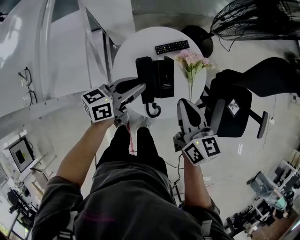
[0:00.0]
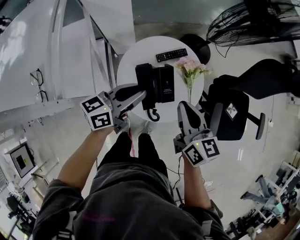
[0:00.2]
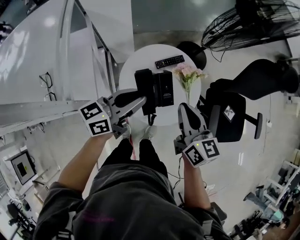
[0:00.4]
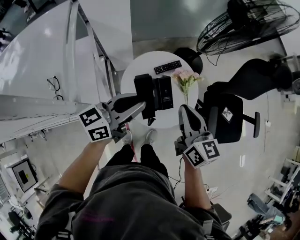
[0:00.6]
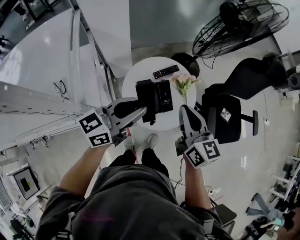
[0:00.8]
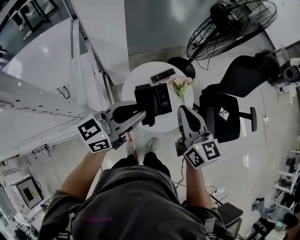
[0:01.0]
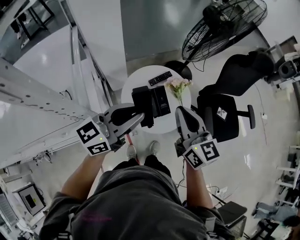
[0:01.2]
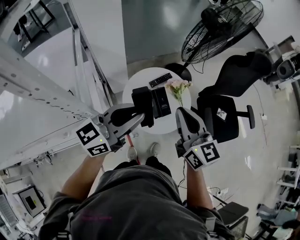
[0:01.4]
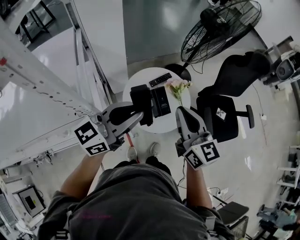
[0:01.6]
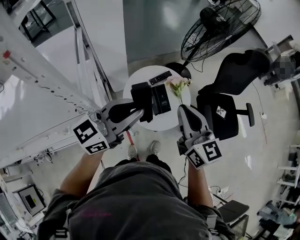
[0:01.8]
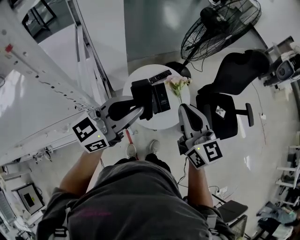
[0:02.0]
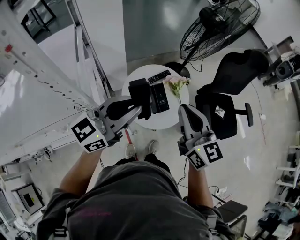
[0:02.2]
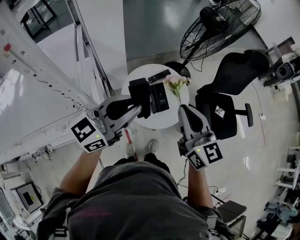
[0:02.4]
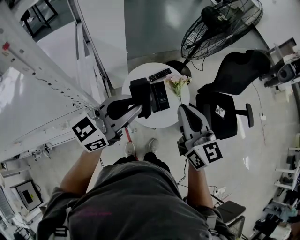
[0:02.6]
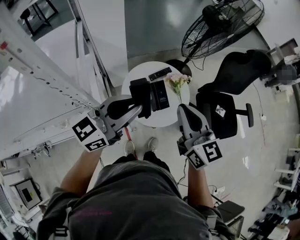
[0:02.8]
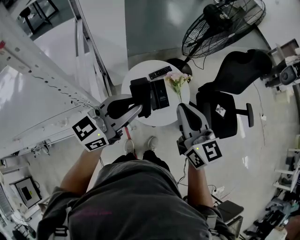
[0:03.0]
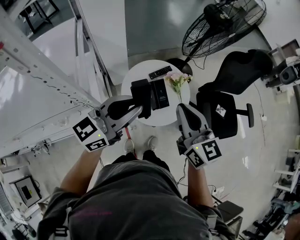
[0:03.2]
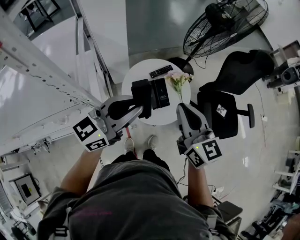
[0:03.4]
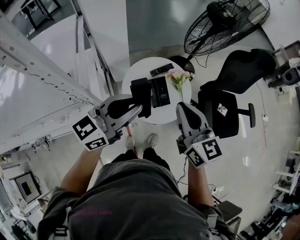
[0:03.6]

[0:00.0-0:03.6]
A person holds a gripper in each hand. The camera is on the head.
0:00.0 to 0:01.8: Both grippers travel together upward and backward, some 30 cm. The right gripper swivels some 30 degrees; the left gripper rotates approximately 40 degrees.
0:01.8 to 0:03.6: The grippers make only small movements.

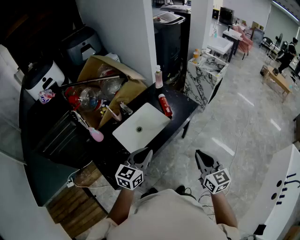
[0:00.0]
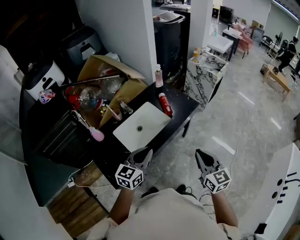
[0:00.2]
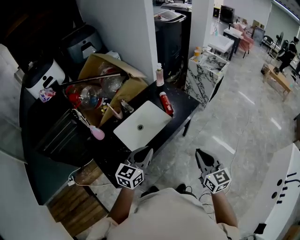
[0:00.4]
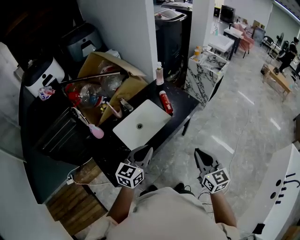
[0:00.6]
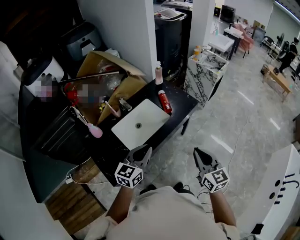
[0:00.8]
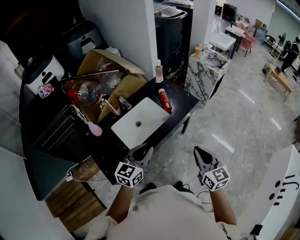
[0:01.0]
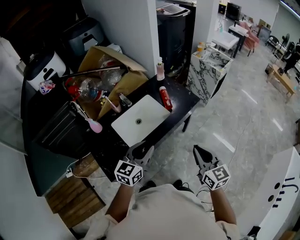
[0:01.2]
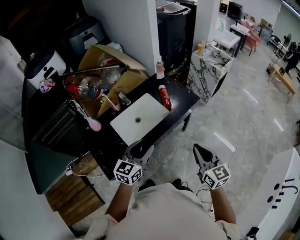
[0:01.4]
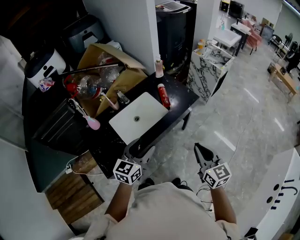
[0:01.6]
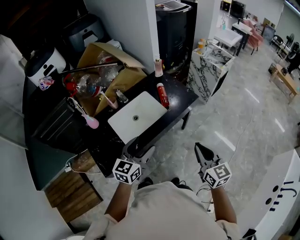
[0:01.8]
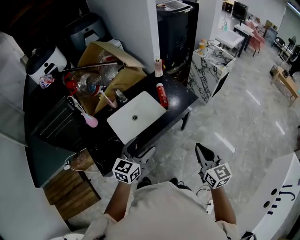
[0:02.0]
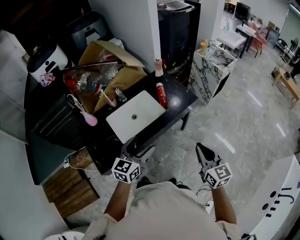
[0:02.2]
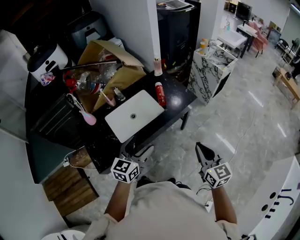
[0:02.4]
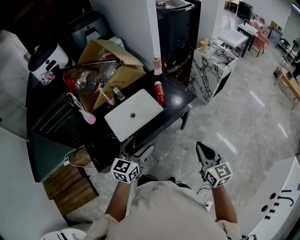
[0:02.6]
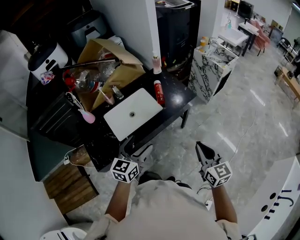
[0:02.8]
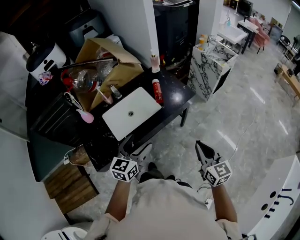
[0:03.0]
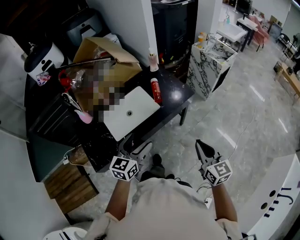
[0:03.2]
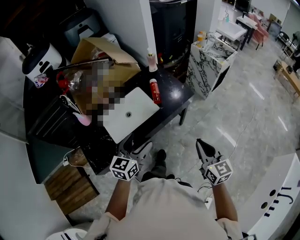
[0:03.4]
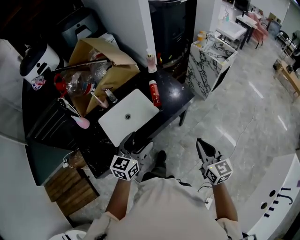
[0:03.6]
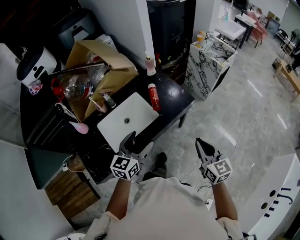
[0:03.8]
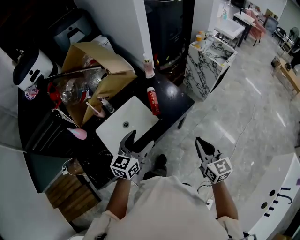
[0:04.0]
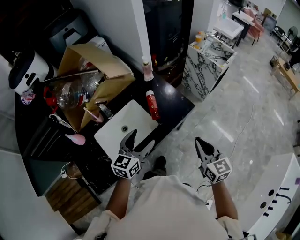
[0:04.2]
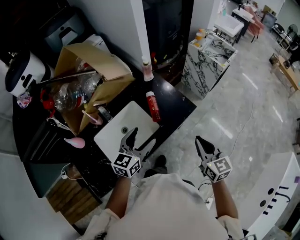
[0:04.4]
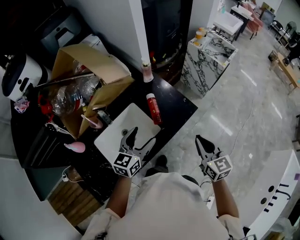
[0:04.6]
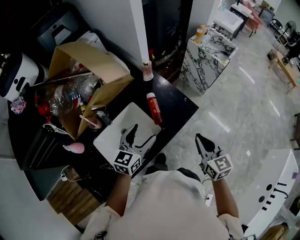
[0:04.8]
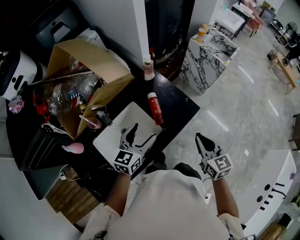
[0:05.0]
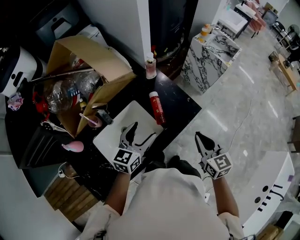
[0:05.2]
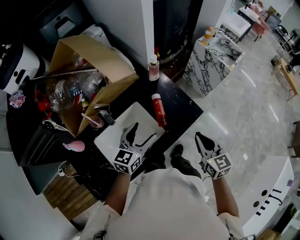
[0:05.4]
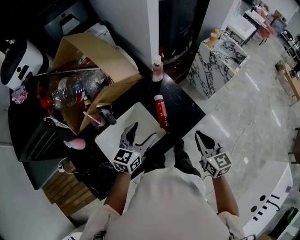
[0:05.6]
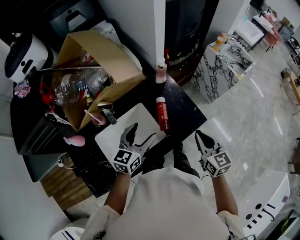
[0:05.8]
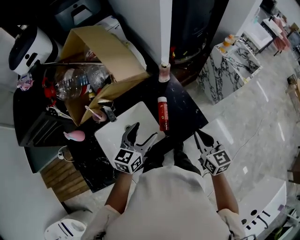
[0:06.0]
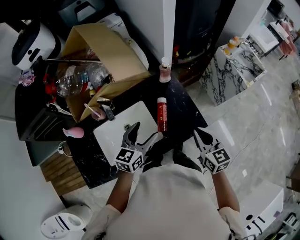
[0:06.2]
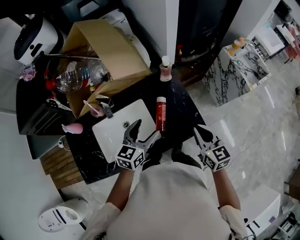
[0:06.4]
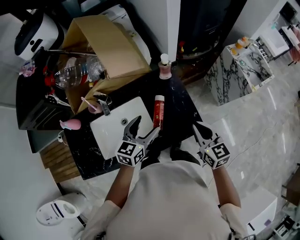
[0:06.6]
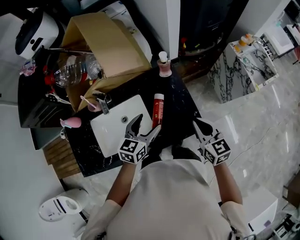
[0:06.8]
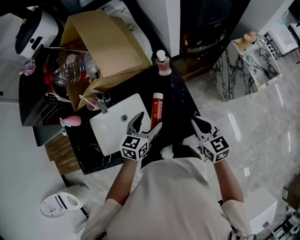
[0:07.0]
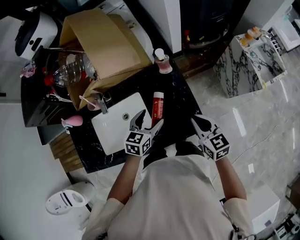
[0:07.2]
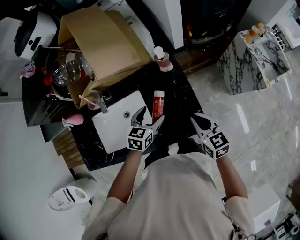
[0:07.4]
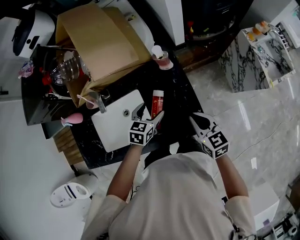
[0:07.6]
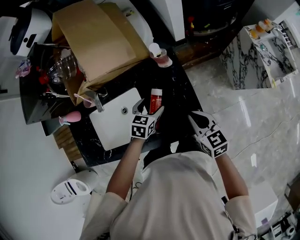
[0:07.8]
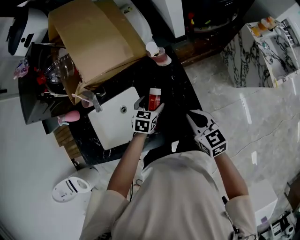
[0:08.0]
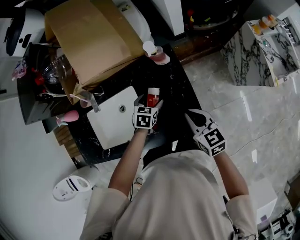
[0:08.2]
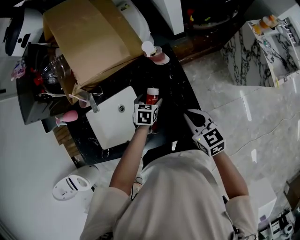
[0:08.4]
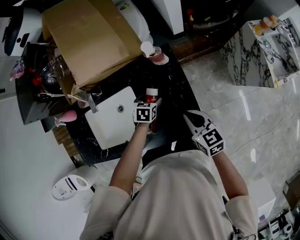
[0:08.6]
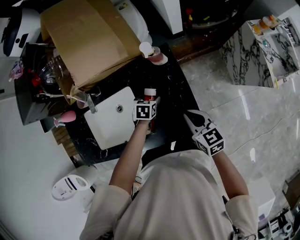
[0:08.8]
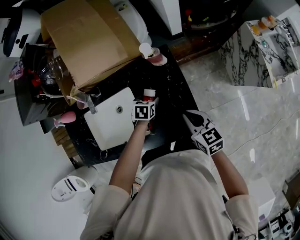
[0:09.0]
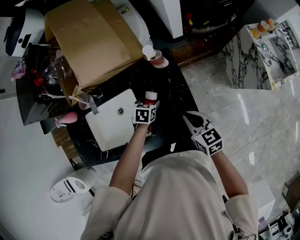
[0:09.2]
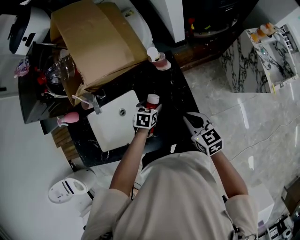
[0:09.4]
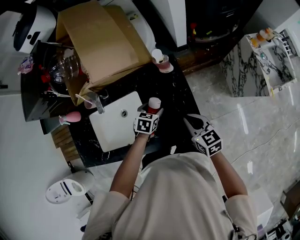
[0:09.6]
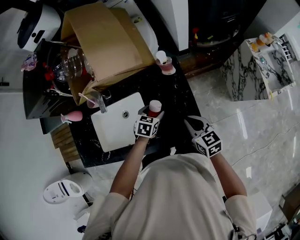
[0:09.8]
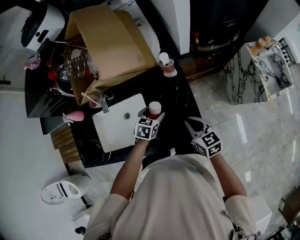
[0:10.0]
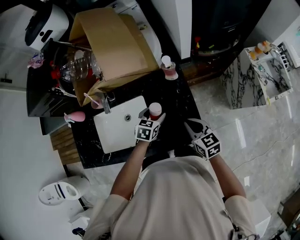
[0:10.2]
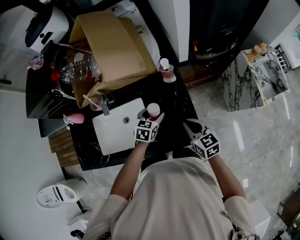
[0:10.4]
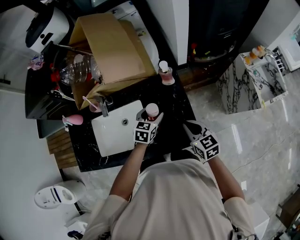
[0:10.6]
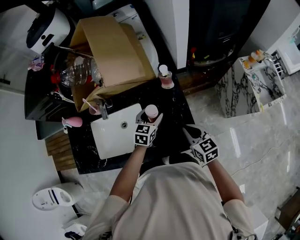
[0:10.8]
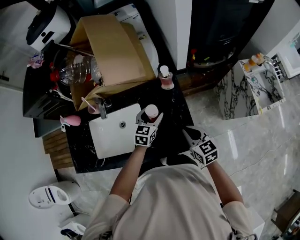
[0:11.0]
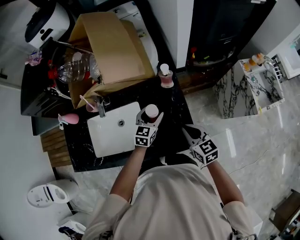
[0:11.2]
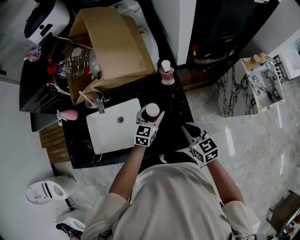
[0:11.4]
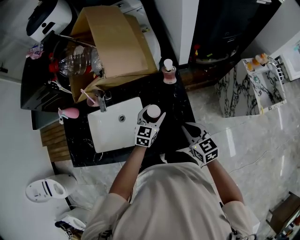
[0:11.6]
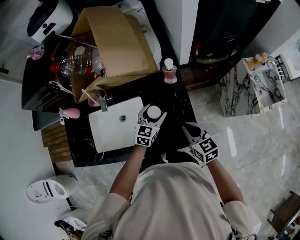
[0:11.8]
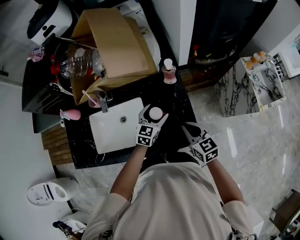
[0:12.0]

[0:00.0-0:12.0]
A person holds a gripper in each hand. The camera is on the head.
0:00.0 to 0:01.6: The left gripper opens up.
0:01.6 to 0:03.0: Both grippers travel together to the right, about 10 cm.
0:03.0 to 0:04.4: The two grippers go some 25 cm forward.
0:04.4 to 0:06.0: The grippers both shift forward by about 15 cm.
0:06.0 to 0:07.6: The left gripper travels downward, forward and to the right by approximately 25 cm, and rotates approximately 30 degrees. The right gripper goes some 20 cm forward, downward and to the right, and swivels about 20 degrees.
0:07.6 to 0:09.0: The right gripper goes about 5 cm downward, while the left gripper travels downward by about 15 cm, and swivels about 20 degrees.
0:09.0 to 0:10.4: The right gripper moves upward, approximately 5 cm. Meanwhile the left gripper travels upward by approximately 15 cm, and changes its angle by approximately 20 degrees.

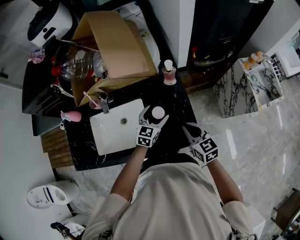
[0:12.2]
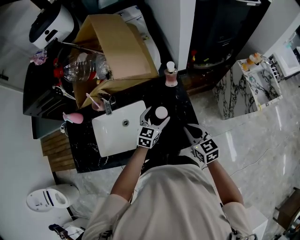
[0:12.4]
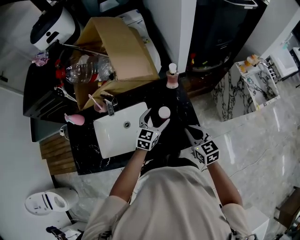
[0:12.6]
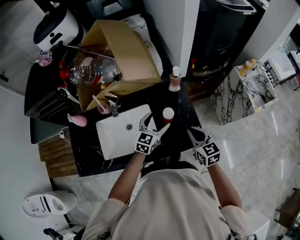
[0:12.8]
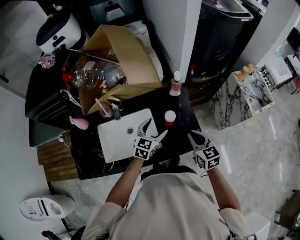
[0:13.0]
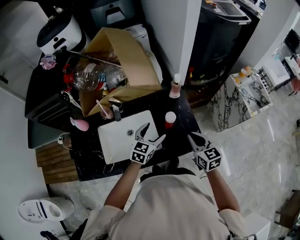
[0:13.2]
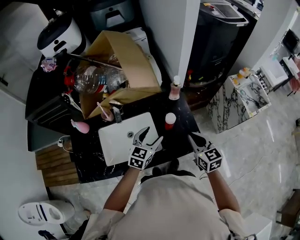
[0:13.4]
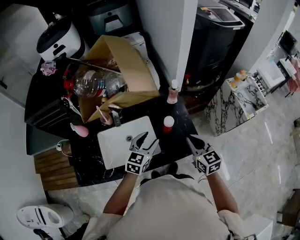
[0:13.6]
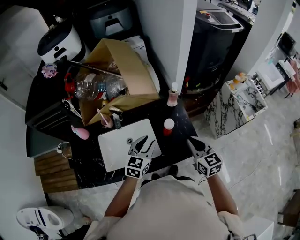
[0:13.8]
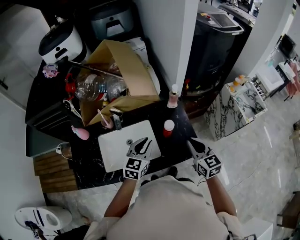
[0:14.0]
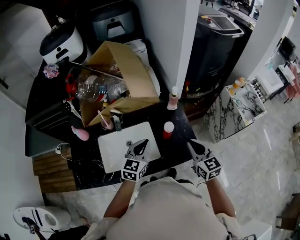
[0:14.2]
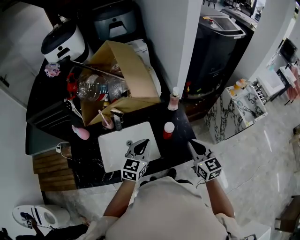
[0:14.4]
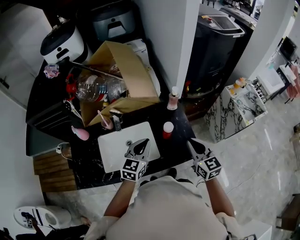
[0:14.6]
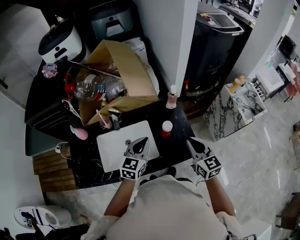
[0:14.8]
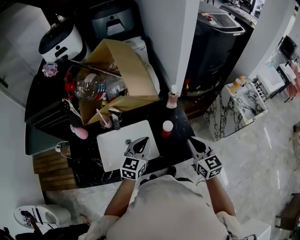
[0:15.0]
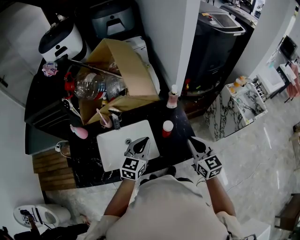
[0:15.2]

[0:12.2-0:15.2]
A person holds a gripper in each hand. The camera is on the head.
0:12.2 to 0:13.8: The left gripper is displaced upward, backward and to the left by approximately 20 cm, and closes. The right gripper is displaced upward and backward by some 15 cm.
0:13.8 to 0:15.2: The left gripper closes its fingers.

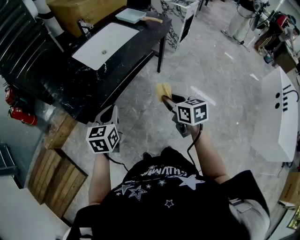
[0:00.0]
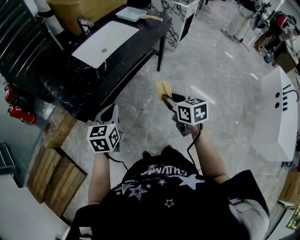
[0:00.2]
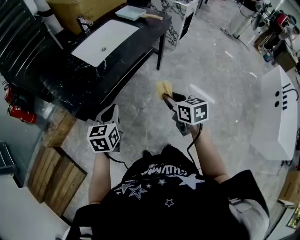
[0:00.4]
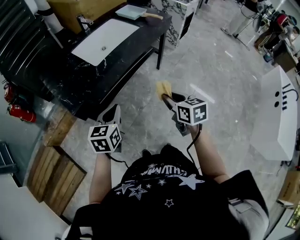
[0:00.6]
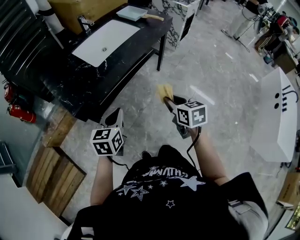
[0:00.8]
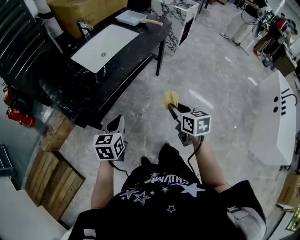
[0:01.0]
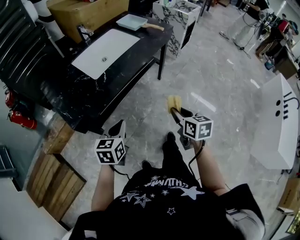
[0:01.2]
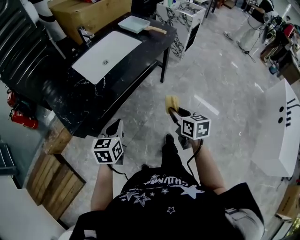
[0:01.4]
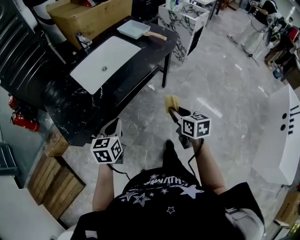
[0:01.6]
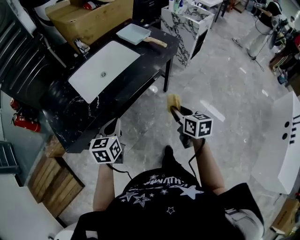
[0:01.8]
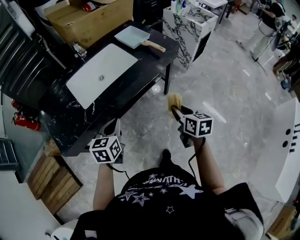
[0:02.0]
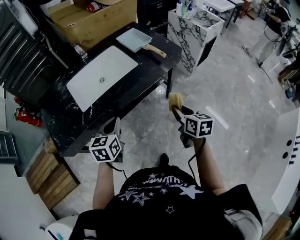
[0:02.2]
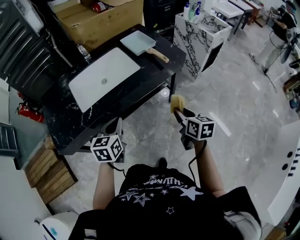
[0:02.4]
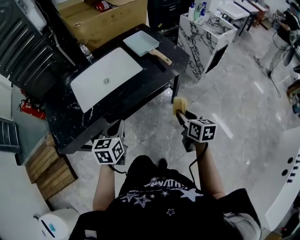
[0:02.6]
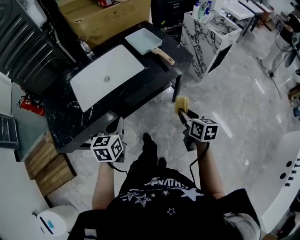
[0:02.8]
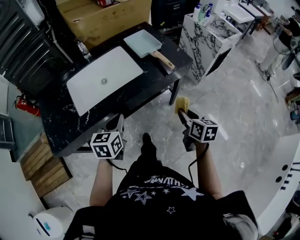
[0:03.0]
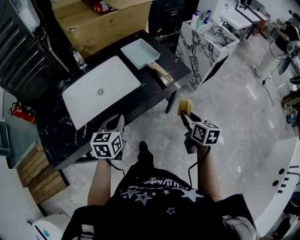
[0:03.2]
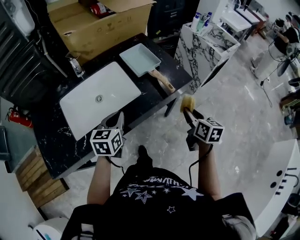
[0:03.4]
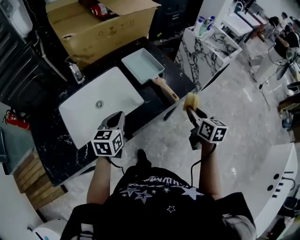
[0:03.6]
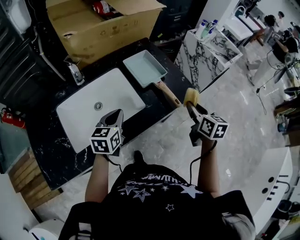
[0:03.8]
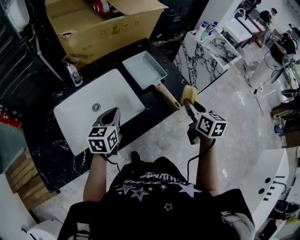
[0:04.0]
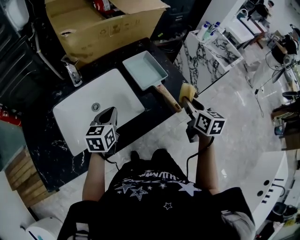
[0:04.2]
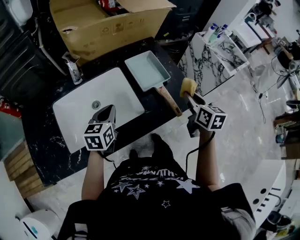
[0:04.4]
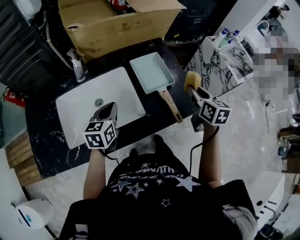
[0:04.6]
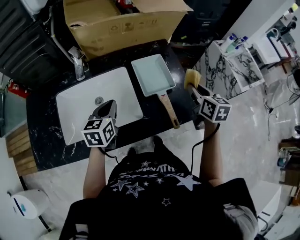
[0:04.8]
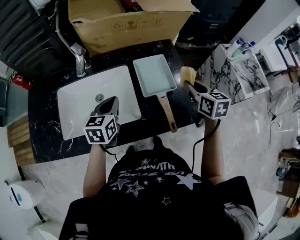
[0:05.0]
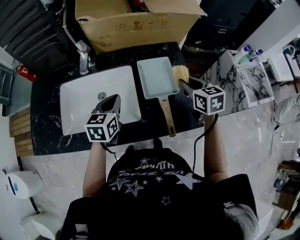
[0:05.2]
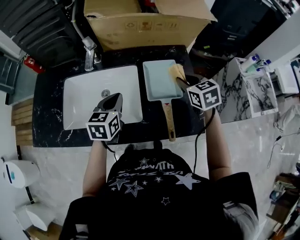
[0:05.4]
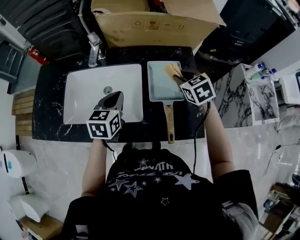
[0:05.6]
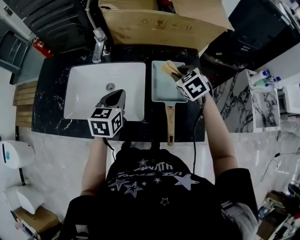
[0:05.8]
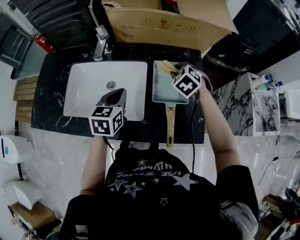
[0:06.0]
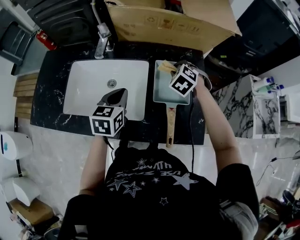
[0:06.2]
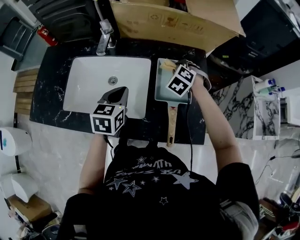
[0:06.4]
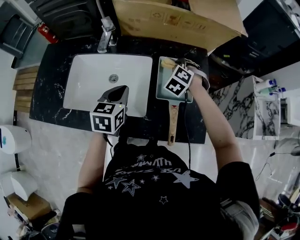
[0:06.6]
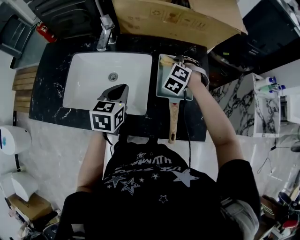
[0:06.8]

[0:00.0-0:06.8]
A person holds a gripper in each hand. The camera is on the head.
0:00.0 to 0:01.4: The right gripper is displaced forward and to the right by about 10 cm, while the left gripper shifts by about 5 cm.
0:01.4 to 0:02.8: The two grippers go about 30 cm forward and to the right.
0:02.8 to 0:04.0: Both grippers travel together forward, approximately 25 cm.
0:04.0 to 0:05.4: The left gripper shifts by some 10 cm, and turns by about 30 degrees; the right gripper moves some 25 cm, and turns by some 50 degrees.
0:05.4 to 0:06.8: The right gripper travels forward, downward and to the left by about 15 cm, and twists roughly 60 degrees counterclockwise, seen from behind.
